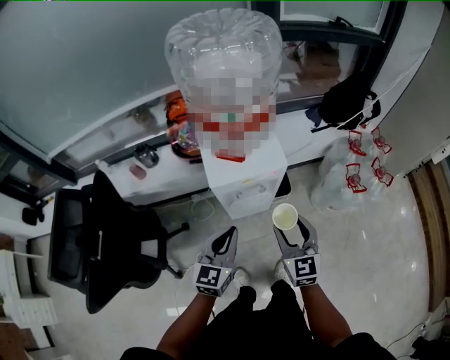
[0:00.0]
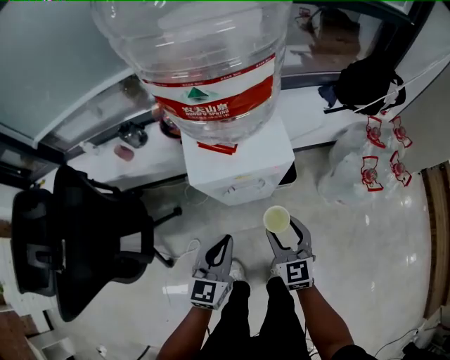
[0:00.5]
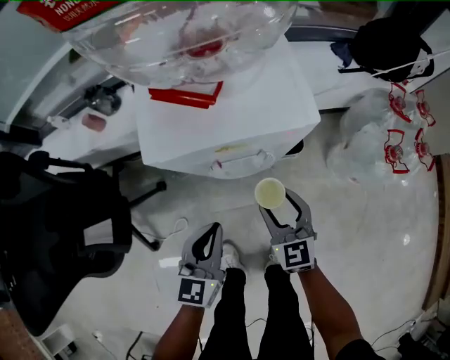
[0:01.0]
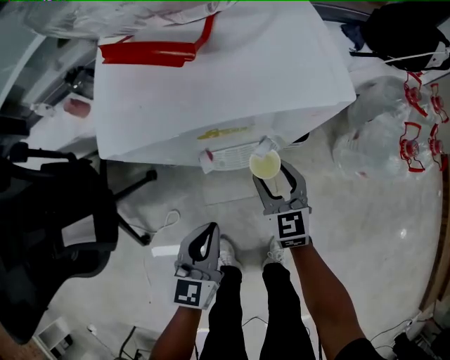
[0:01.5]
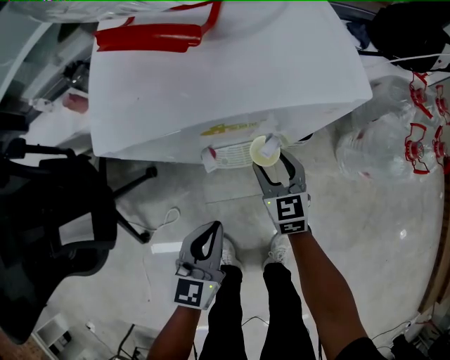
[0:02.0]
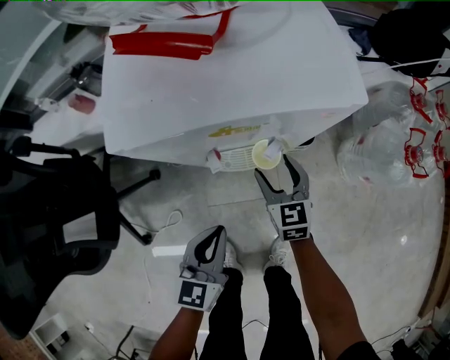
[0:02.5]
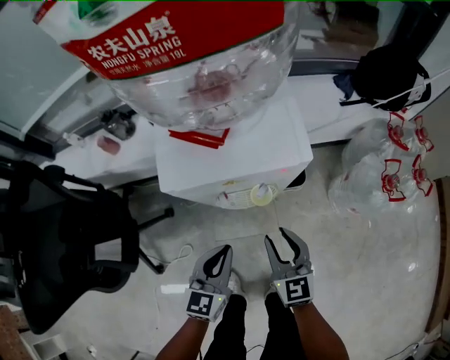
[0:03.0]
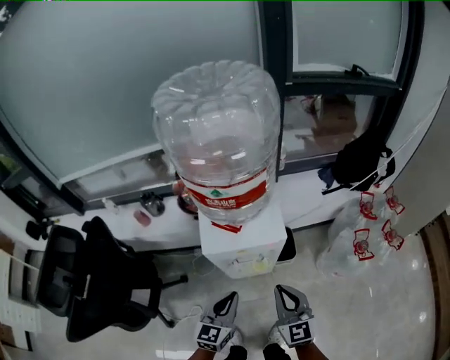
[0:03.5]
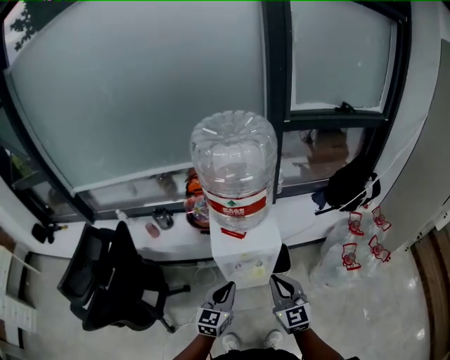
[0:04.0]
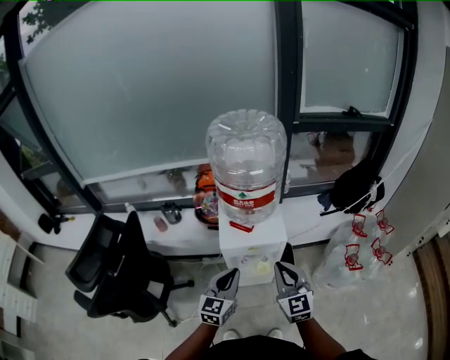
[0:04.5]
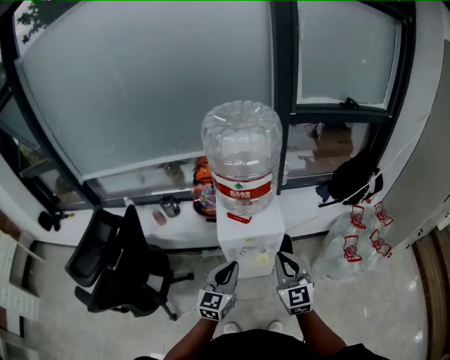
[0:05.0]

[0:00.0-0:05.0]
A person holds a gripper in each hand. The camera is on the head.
0.0 to 2.5 s: The right gripper travels downward and forward by about 40 cm. The left gripper moves downward, approximately 30 cm.
2.5 to 5.0 s: Both grippers travel together upward, approximately 40 cm. The right gripper turns by approximately 30 degrees, and closes up.

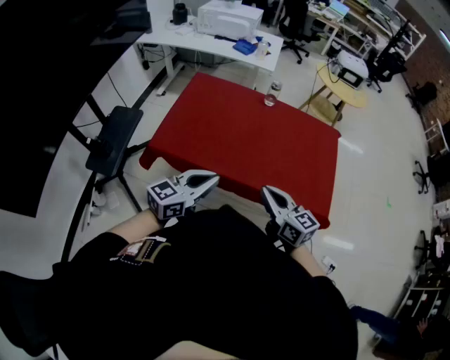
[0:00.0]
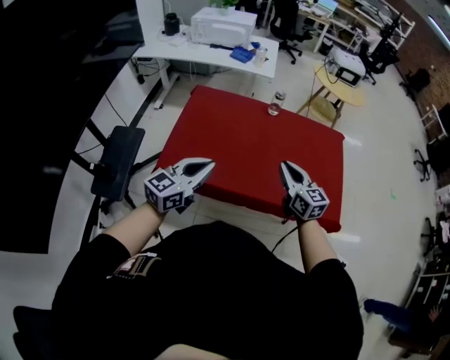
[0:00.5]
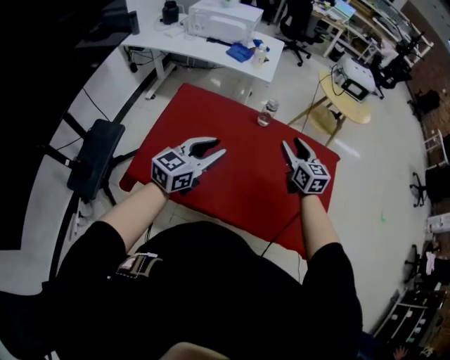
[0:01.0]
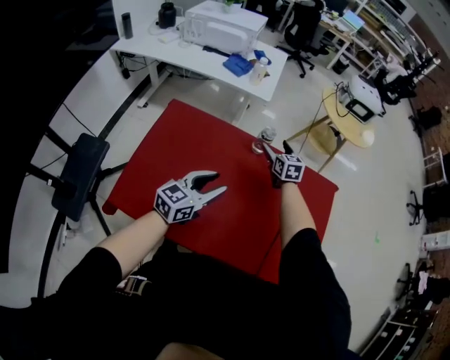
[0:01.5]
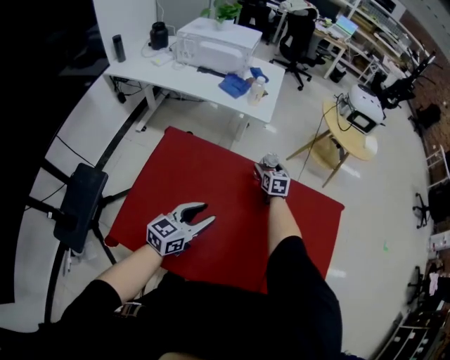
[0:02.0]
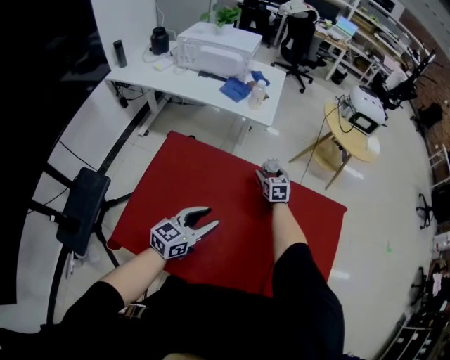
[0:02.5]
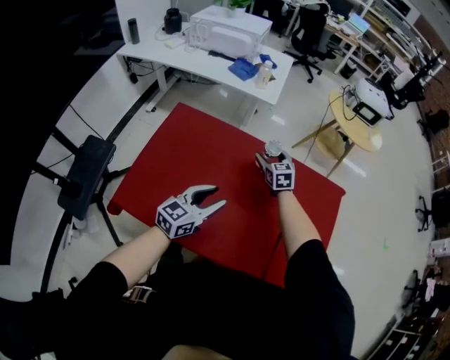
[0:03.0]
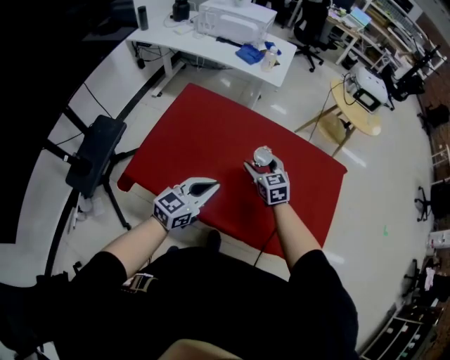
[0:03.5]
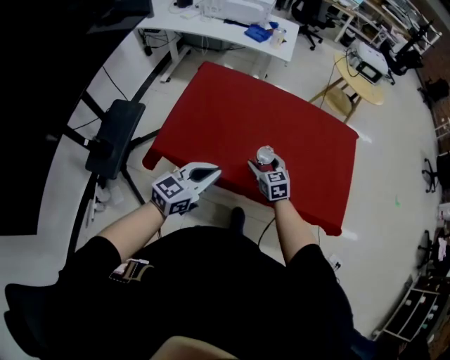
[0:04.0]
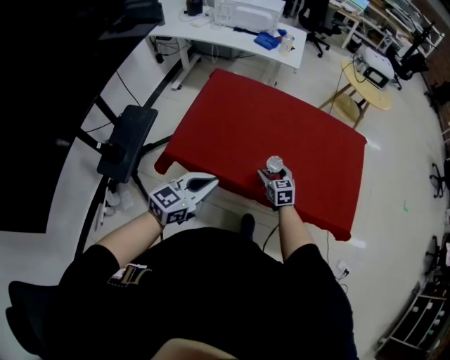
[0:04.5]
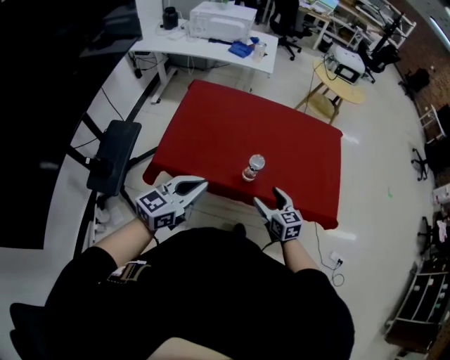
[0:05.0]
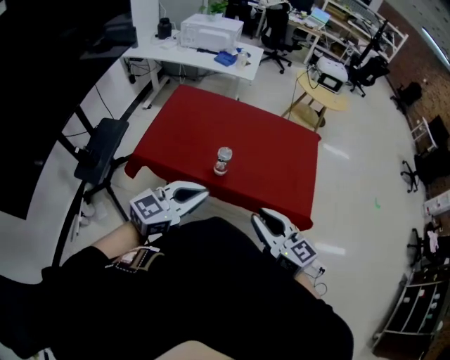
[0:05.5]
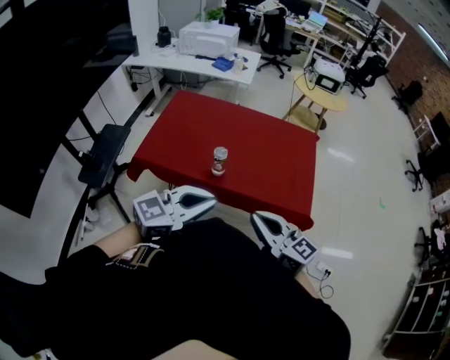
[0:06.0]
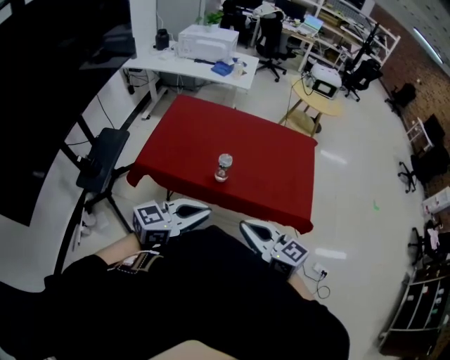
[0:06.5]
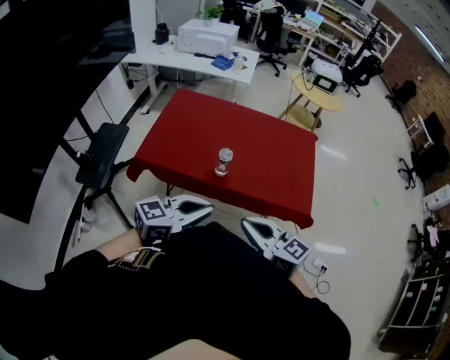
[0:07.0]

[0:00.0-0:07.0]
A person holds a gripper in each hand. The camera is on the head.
0.0 to 2.0 s: The left gripper goes some 40 cm forward, and opens. The right gripper moves forward, approximately 70 cm, turns by approximately 40 degrees, and opens its fingers.
2.0 to 3.5 s: The left gripper is displaced backward by roughly 15 cm, and closes its fingers; the right gripper shifts approximately 30 cm backward, and rotates approximately 20 degrees.
3.5 to 5.0 s: The left gripper heads backward and to the left, covering about 25 cm; the right gripper goes approximately 30 cm backward.
5.0 to 7.0 s: The left gripper travels to the right and backward by approximately 20 cm, while the right gripper is displaced backward and upward by roughly 25 cm, turns by about 30 degrees, and closes its fingers.

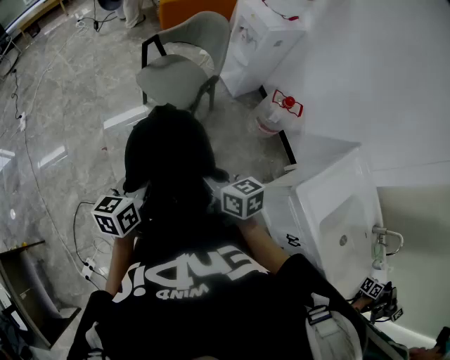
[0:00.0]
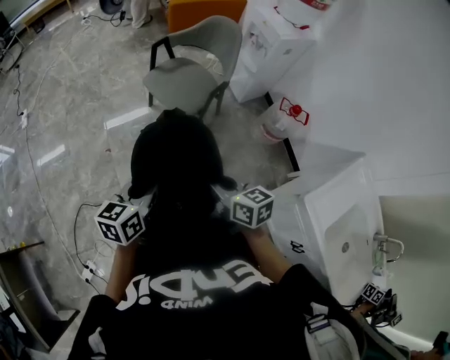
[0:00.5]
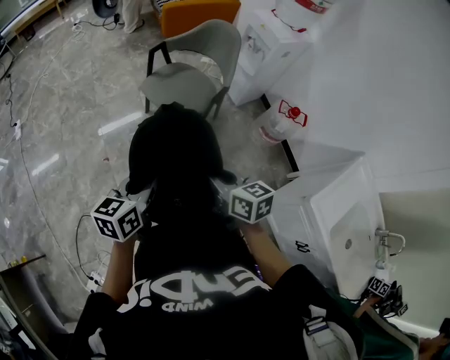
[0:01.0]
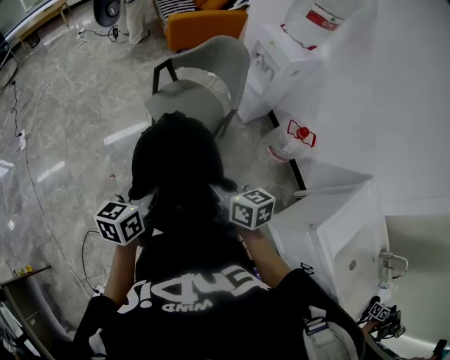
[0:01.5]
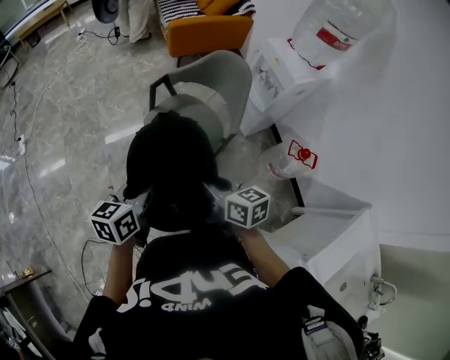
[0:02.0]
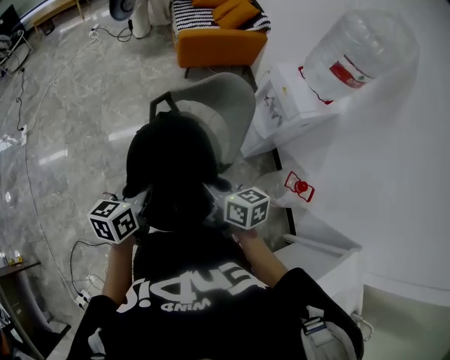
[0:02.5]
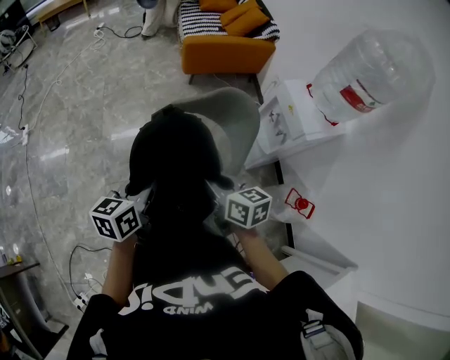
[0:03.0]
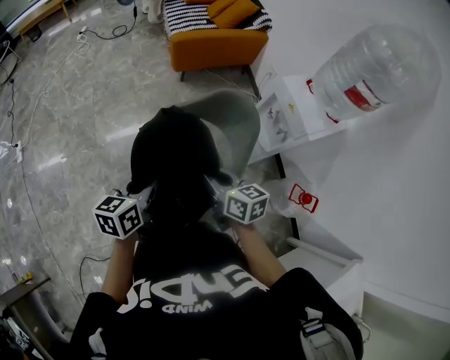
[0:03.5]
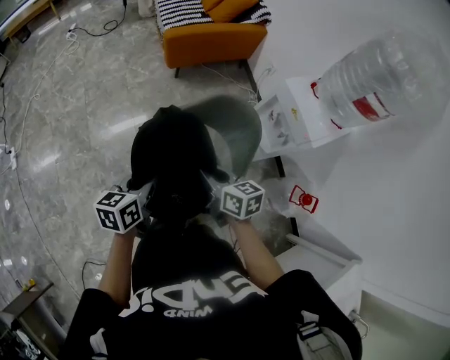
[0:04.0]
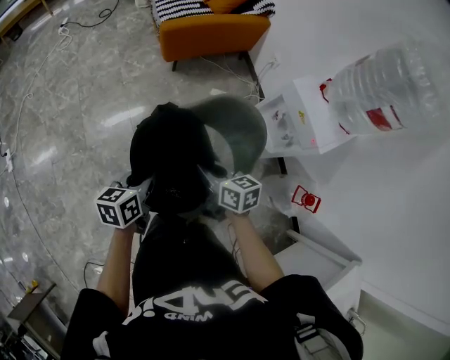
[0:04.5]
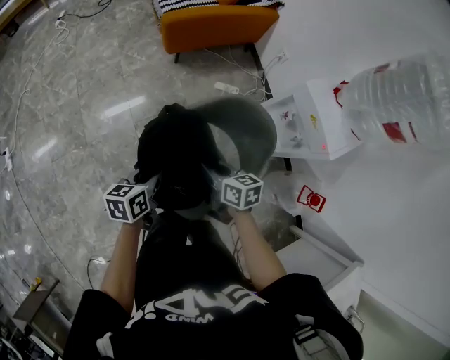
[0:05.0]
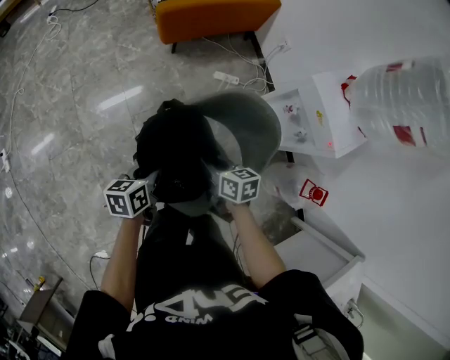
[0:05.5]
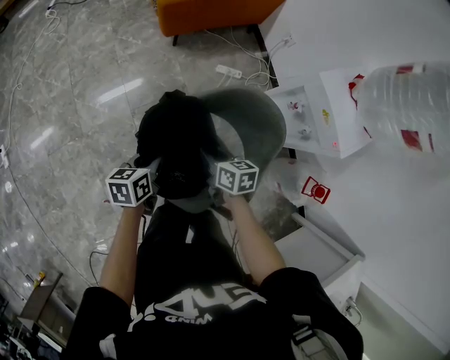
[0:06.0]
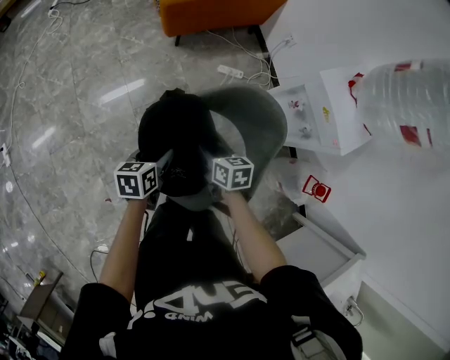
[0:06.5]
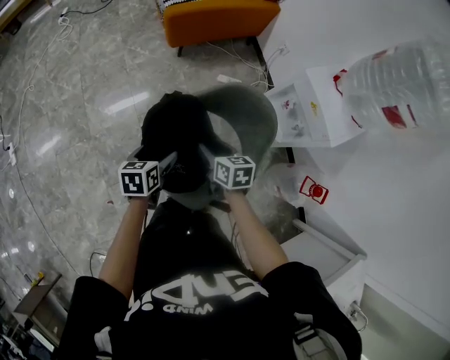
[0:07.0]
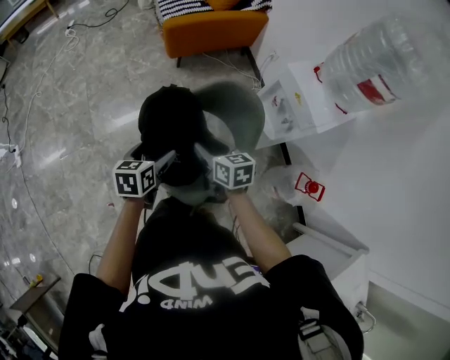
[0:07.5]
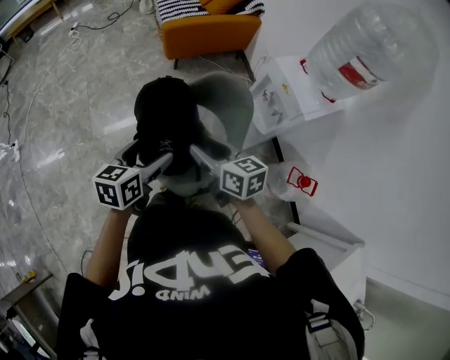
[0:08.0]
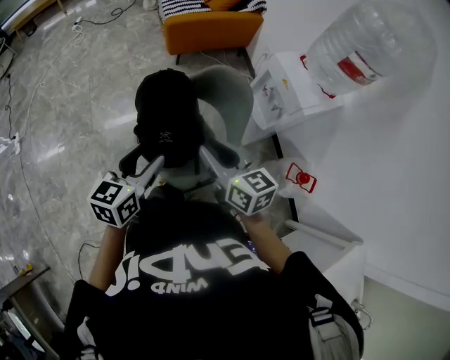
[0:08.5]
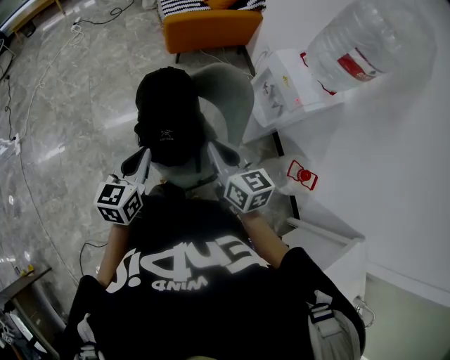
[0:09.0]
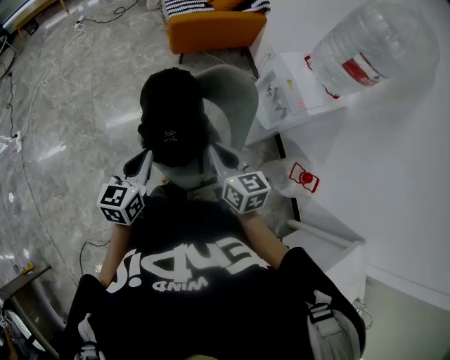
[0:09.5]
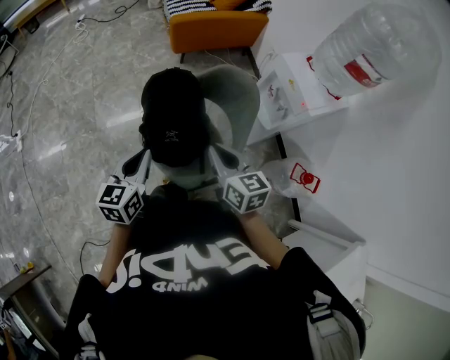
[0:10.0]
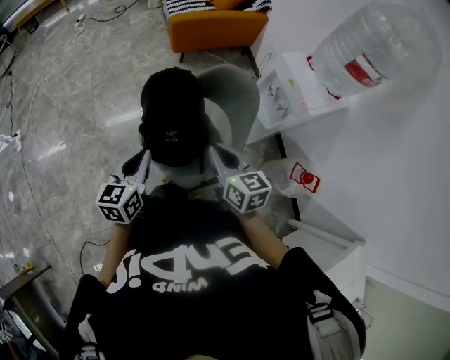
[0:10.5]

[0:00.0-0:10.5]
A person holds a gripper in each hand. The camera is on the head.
0.0 to 2.0 s: Both grippers travel together forward, roughly 30 cm.
2.0 to 4.0 s: Both grippers move forward, roughly 35 cm.
4.0 to 6.5 s: Both grippers move downward and forward, roughly 25 cm. The left gripper opens up.
6.5 to 8.5 s: The grippers both shift upward and backward by roughly 35 cm. The right gripper changes its angle by roughly 30 degrees, and opens, then closes once more; the left gripper turns by approximately 30 degrees, and opens, then closes again.
8.5 to 10.5 s: The right gripper moves approximately 5 cm, and closes. The left gripper shifts by some 5 cm, and closes its fingers.

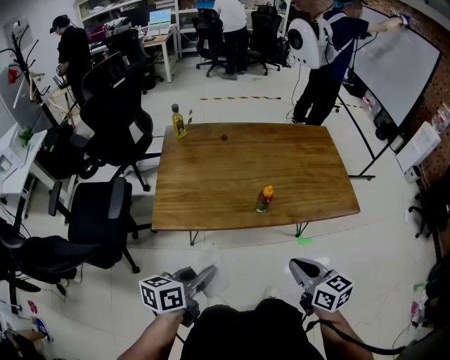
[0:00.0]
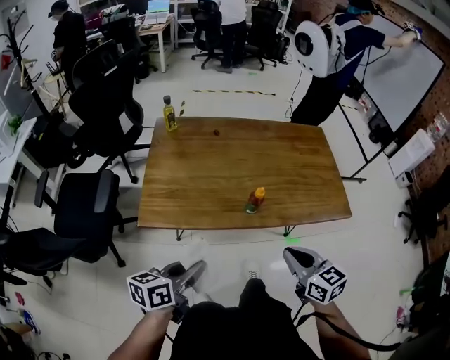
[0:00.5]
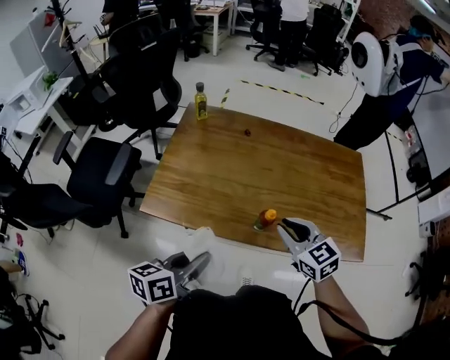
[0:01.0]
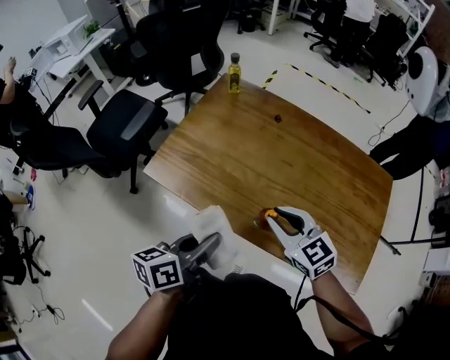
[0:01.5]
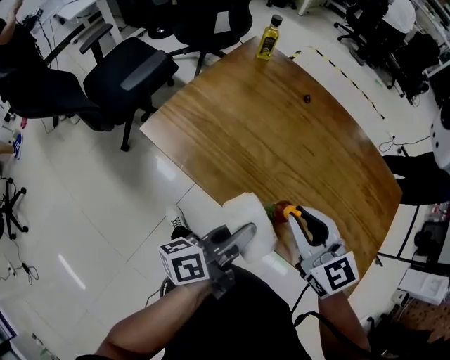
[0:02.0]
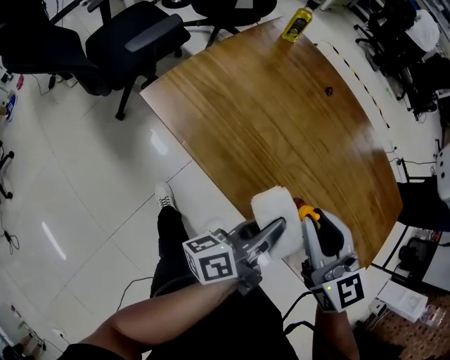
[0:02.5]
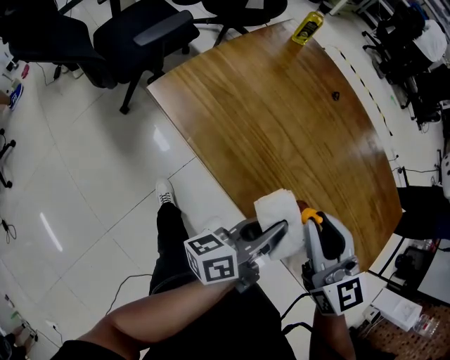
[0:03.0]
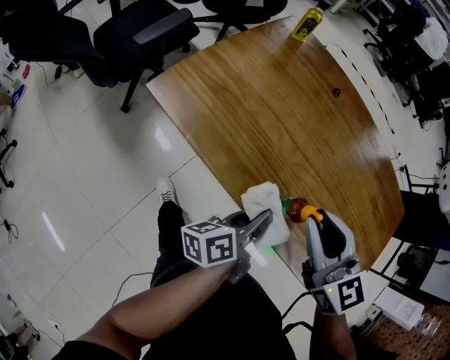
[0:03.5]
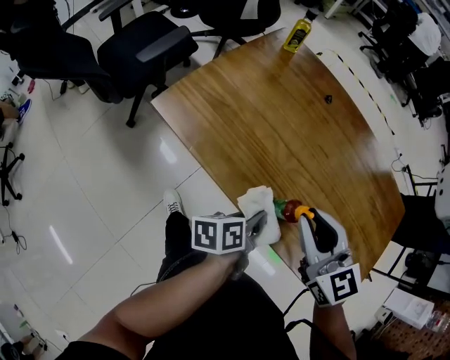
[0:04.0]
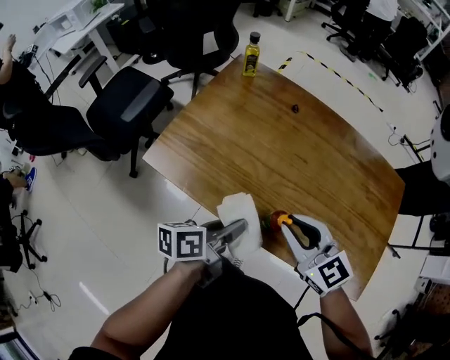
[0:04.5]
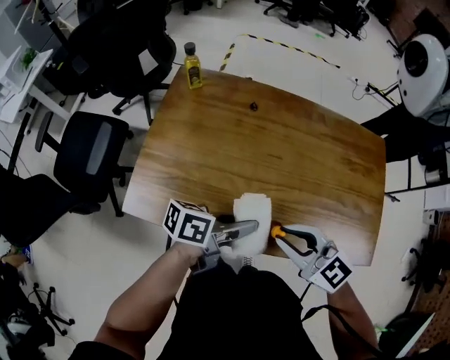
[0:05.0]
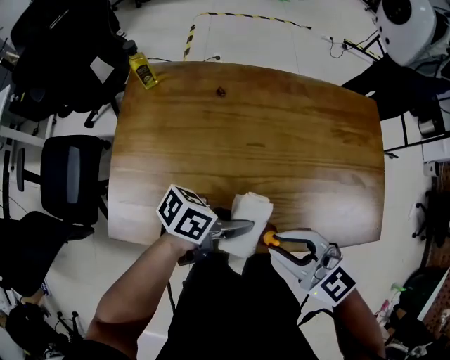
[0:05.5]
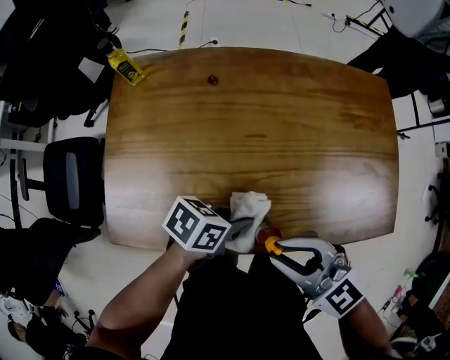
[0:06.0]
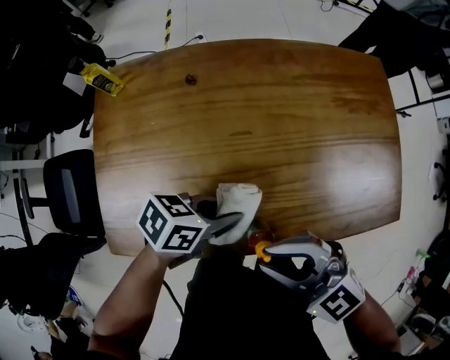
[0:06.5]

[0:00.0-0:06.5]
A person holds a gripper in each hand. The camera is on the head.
0.0 to 2.0 s: The left gripper ends up approximately 25 cm from where it was, and swivels some 50 degrees. Meanwhile the right gripper shifts by some 25 cm, and turns by some 50 degrees.
2.0 to 4.5 s: The left gripper goes downward and returns, some 15 cm each way, and turns by about 20 degrees.
4.5 to 6.5 s: The left gripper moves roughly 10 cm, and swivels approximately 70 degrees.
